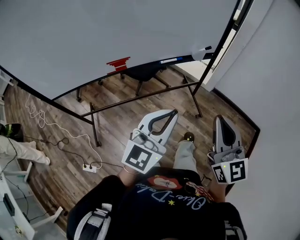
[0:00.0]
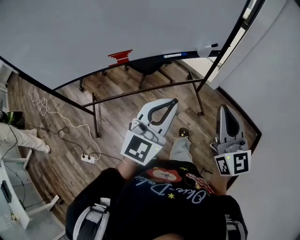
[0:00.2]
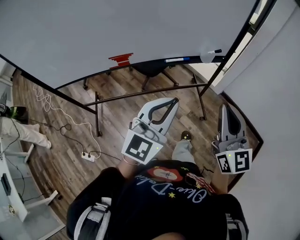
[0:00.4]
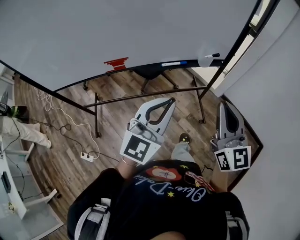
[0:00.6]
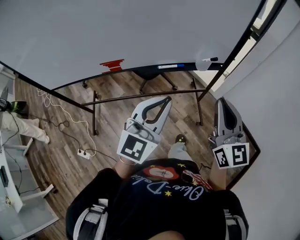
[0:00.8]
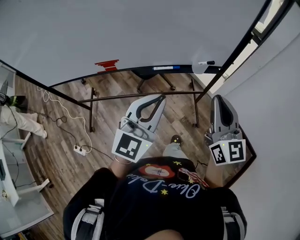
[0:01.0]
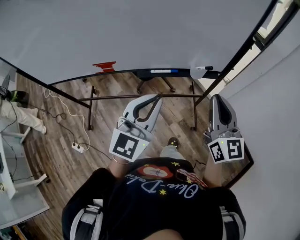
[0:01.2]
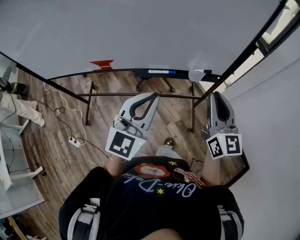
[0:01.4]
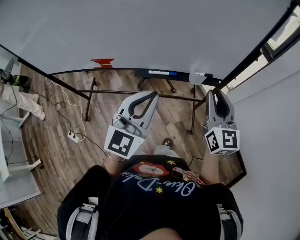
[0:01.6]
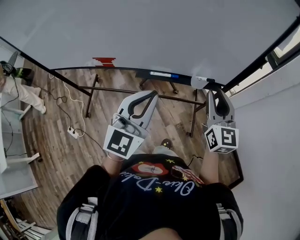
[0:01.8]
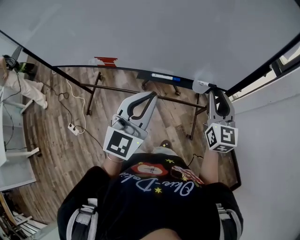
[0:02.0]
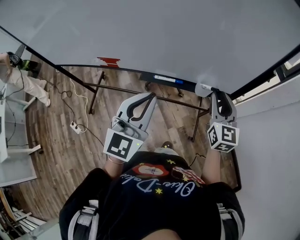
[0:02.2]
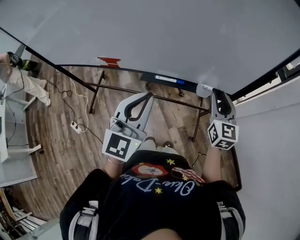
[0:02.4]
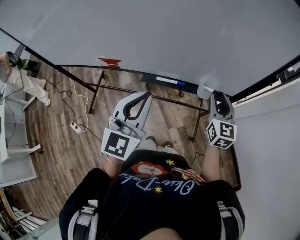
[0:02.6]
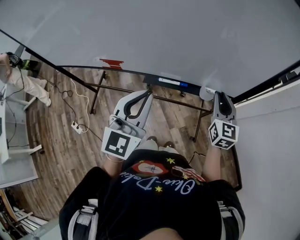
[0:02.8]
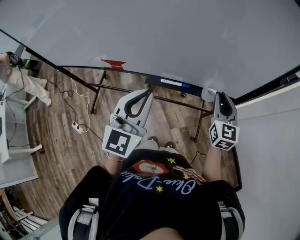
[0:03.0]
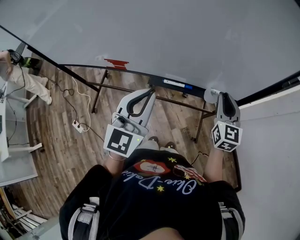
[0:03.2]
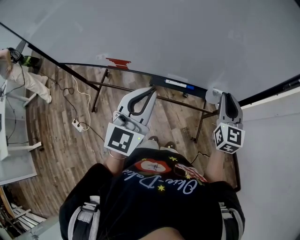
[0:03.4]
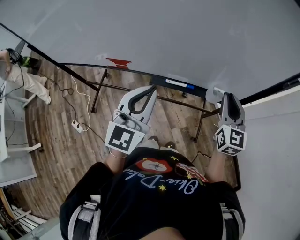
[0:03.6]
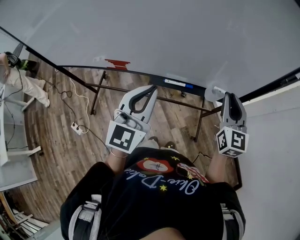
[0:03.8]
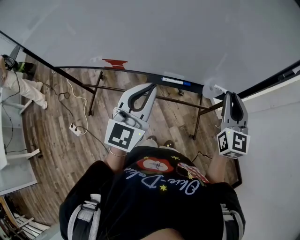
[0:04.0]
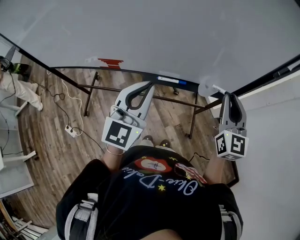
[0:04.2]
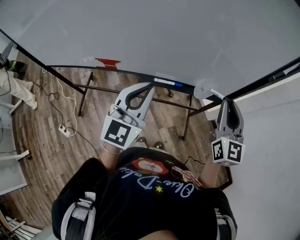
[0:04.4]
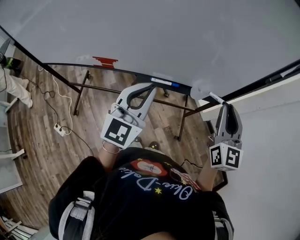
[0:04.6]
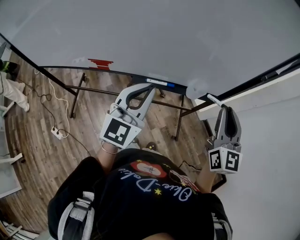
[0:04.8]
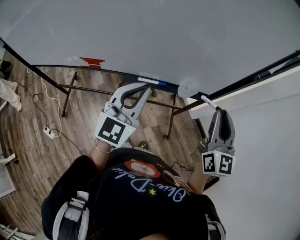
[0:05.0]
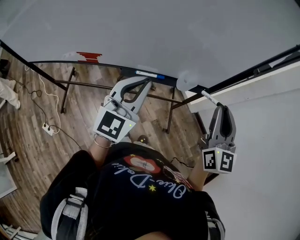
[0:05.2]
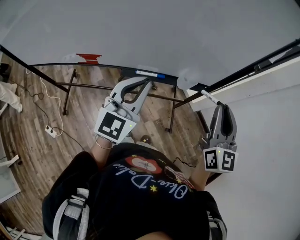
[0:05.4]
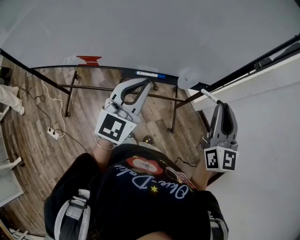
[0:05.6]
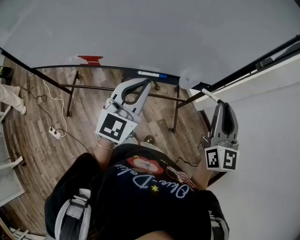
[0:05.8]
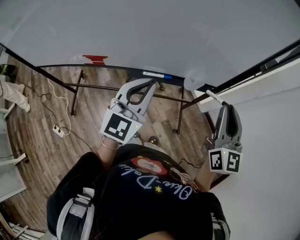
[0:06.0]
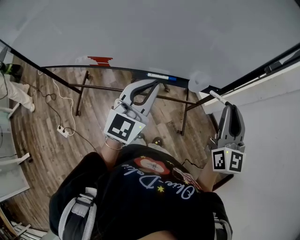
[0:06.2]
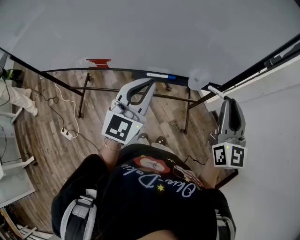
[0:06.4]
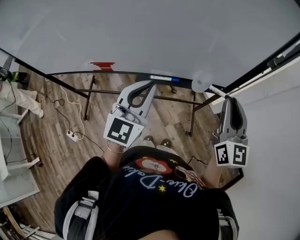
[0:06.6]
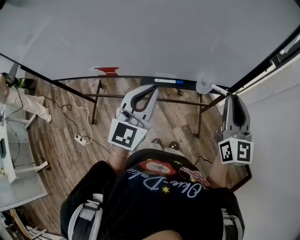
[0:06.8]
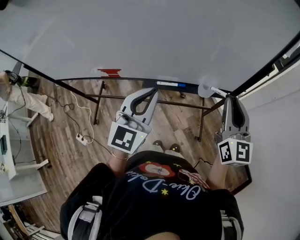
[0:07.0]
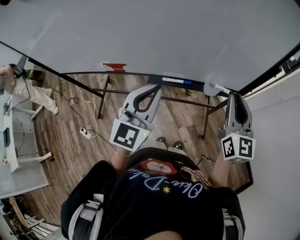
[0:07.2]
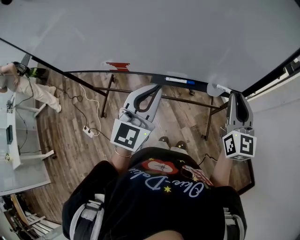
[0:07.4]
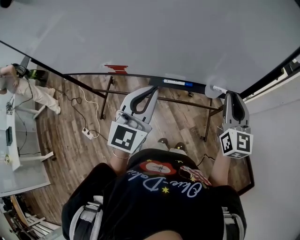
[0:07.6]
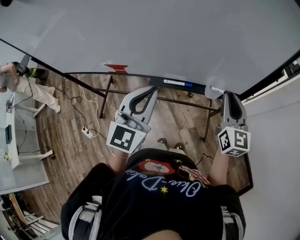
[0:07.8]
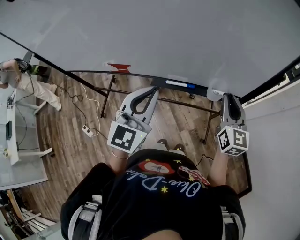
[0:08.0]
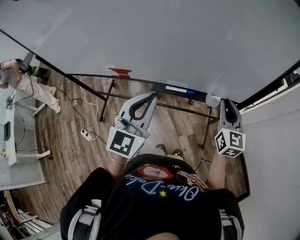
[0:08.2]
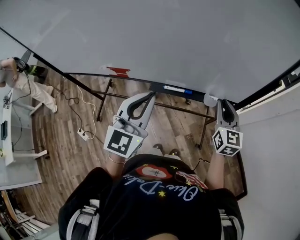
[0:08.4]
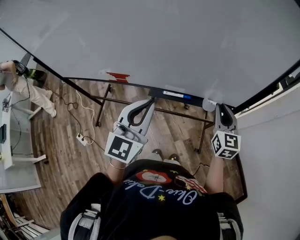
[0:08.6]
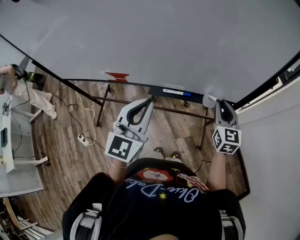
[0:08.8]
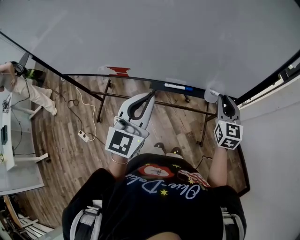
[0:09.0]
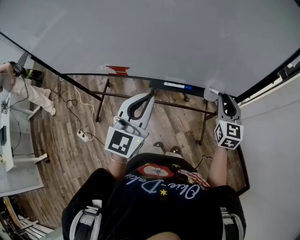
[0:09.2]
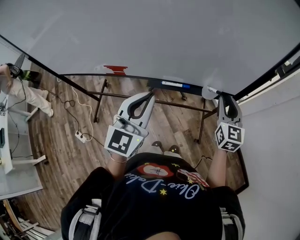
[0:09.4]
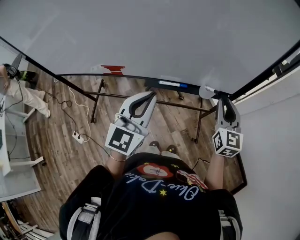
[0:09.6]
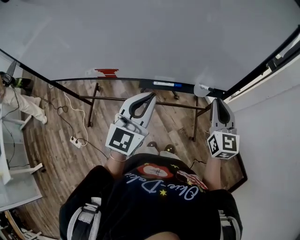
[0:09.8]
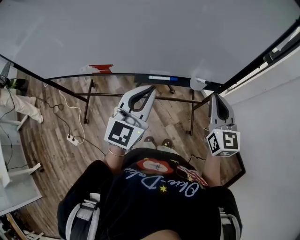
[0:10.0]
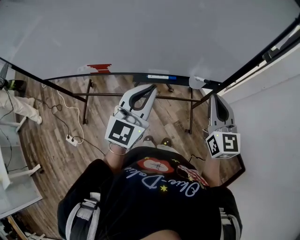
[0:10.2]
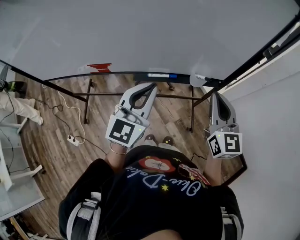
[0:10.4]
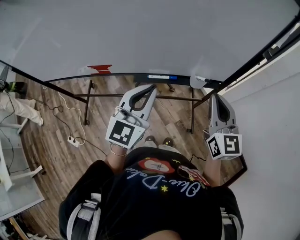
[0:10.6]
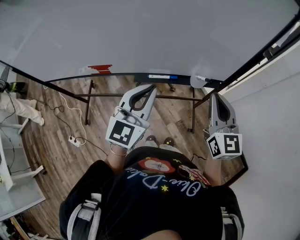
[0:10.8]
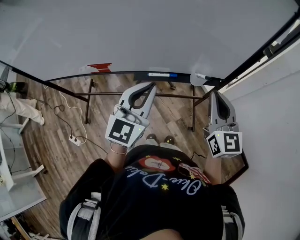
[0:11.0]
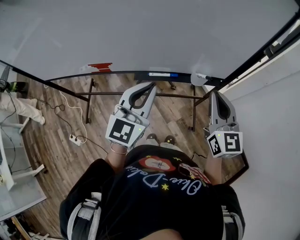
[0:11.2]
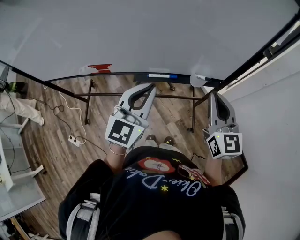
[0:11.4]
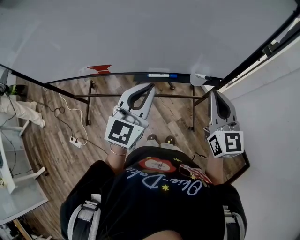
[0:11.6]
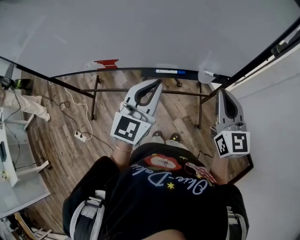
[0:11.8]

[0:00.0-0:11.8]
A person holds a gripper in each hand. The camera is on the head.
0:00.0 to 0:01.4: The grippers both shift forward by approximately 25 cm. The left gripper turns by about 30 degrees.
0:01.4 to 0:03.0: The right gripper travels forward and downward by about 15 cm; the left gripper moves forward and to the left, about 10 cm.
0:03.0 to 0:04.4: The right gripper shifts about 15 cm upward and backward.
0:04.4 to 0:06.0: The right gripper changes place by some 5 cm.
0:06.0 to 0:07.4: The right gripper goes roughly 10 cm forward and downward.
0:07.4 to 0:08.8: The right gripper moves downward, about 10 cm.
0:08.8 to 0:10.4: The right gripper is displaced upward and backward by approximately 10 cm.
0:10.4 to 0:11.8: There are only small adjustments of the grippers.

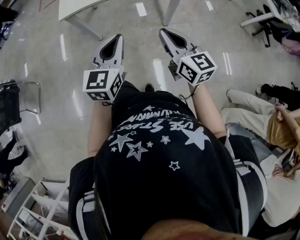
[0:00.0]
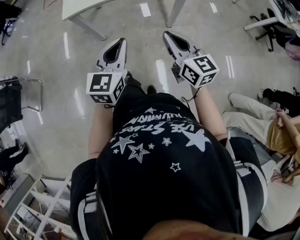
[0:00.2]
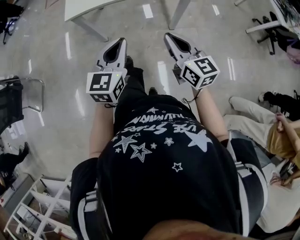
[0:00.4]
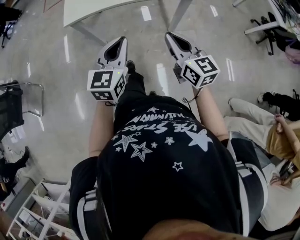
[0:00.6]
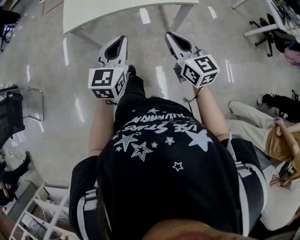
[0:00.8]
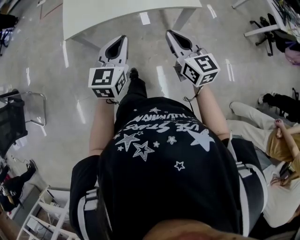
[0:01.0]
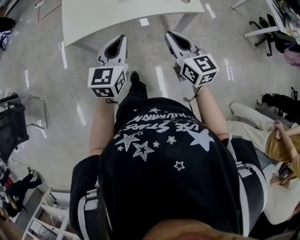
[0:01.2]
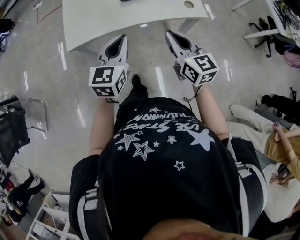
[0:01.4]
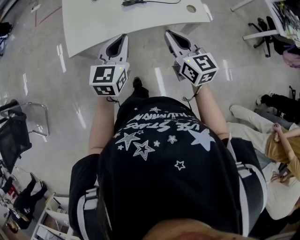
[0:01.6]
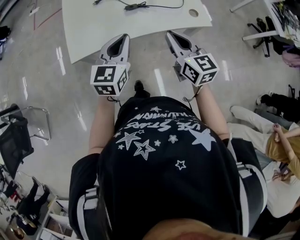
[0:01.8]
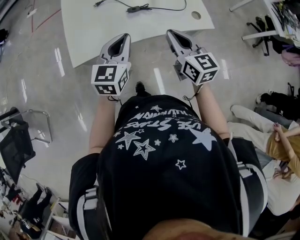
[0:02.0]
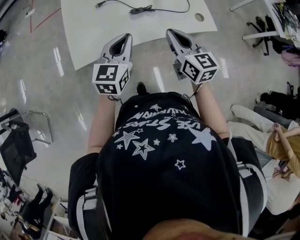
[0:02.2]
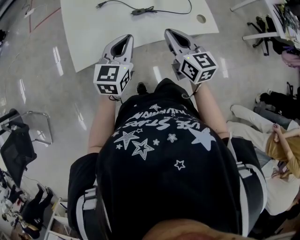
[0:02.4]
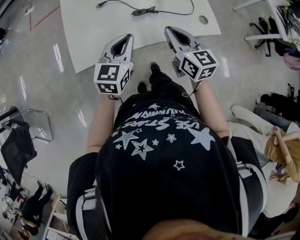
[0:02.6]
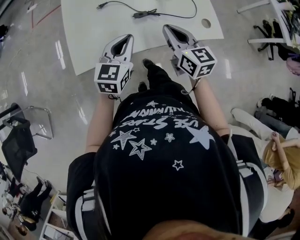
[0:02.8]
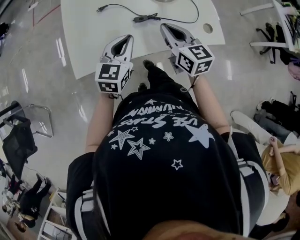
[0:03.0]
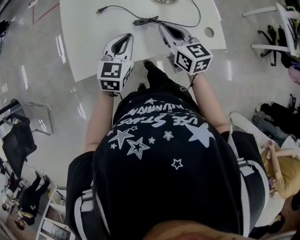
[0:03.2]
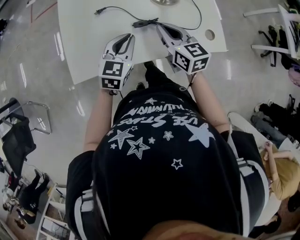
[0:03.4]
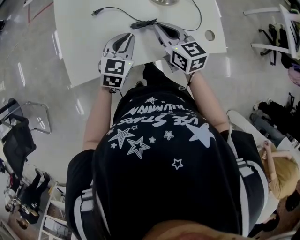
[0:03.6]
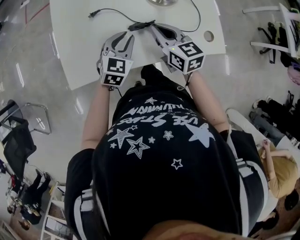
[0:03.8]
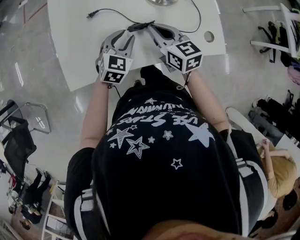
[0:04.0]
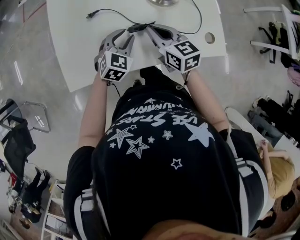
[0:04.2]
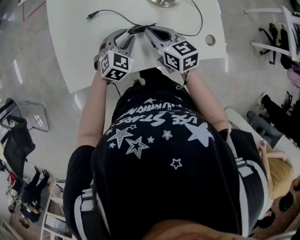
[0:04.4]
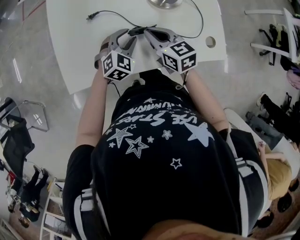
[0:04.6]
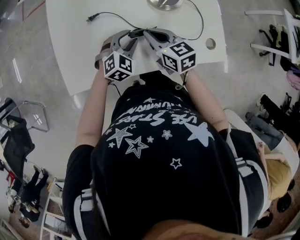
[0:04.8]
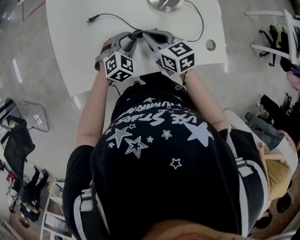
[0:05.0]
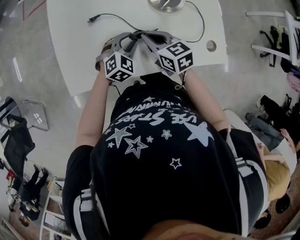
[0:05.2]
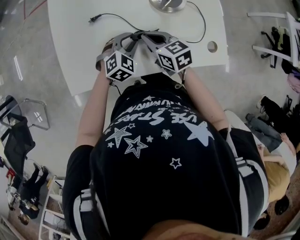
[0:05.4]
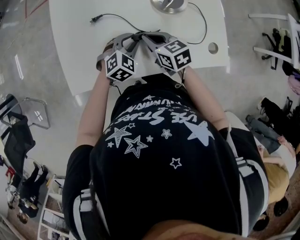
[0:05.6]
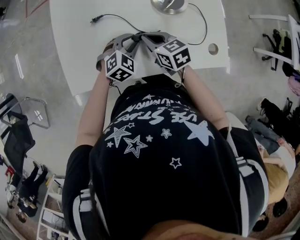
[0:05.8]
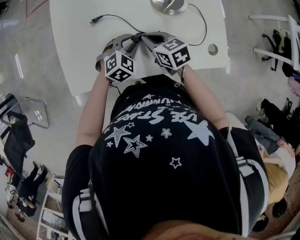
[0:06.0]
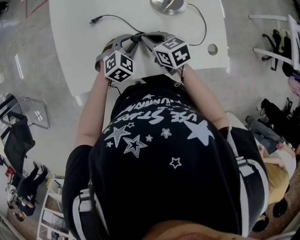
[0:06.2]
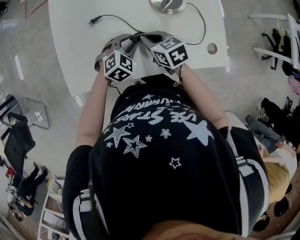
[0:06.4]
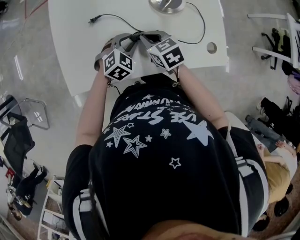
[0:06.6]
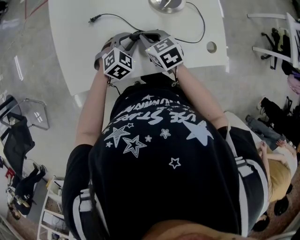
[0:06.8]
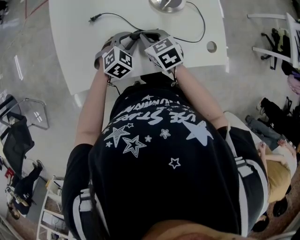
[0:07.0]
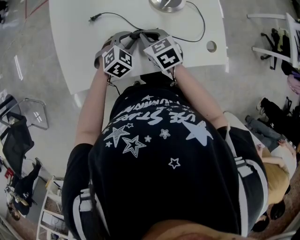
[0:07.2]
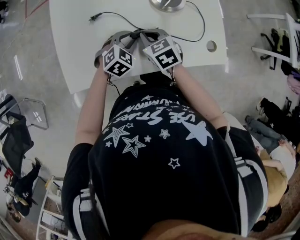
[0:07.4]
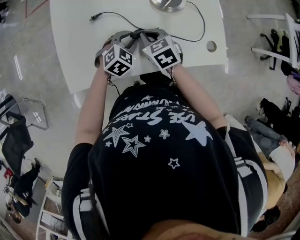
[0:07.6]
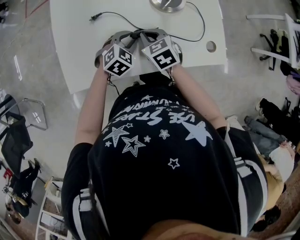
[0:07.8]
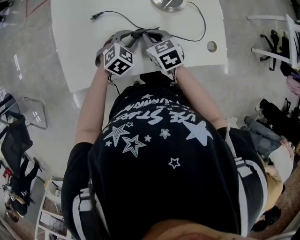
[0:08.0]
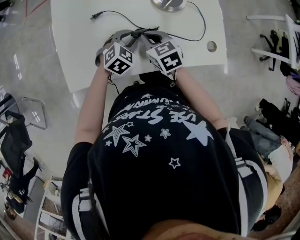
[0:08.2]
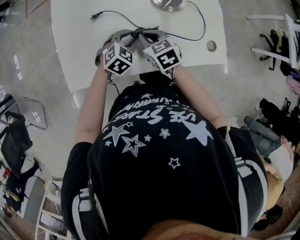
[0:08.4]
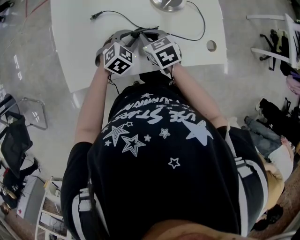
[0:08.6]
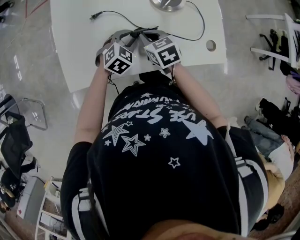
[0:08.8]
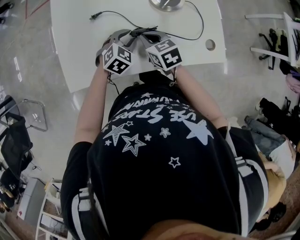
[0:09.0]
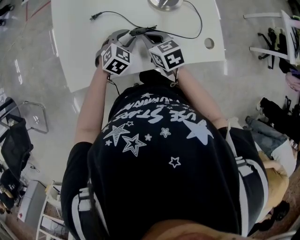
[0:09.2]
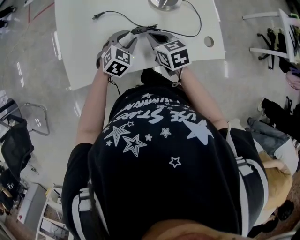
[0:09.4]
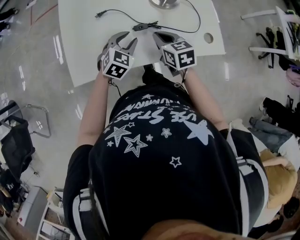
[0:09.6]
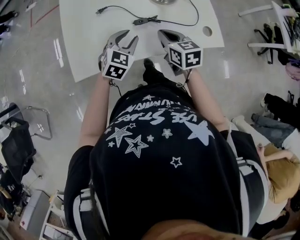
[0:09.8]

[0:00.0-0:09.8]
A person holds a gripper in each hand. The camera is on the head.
0:00.0 to 0:01.4: Both grippers travel together forward, roughly 25 cm.
0:01.4 to 0:02.8: The right gripper travels forward and to the left by about 20 cm, while the left gripper goes roughly 15 cm forward.
0:02.8 to 0:04.2: The two grippers go some 15 cm forward and downward. The left gripper changes its angle by some 30 degrees, and opens up.
0:04.2 to 0:05.6: The right gripper heads downward, covering some 5 cm.
0:05.6 to 0:07.0: There are only small adjustments of the grippers.
0:07.0 to 0:08.4: The grippers stay close to where they were, moving slightly.
0:08.4 to 0:09.8: The right gripper travels backward, upward and to the right by about 10 cm, and changes its angle by approximately 20 degrees. The left gripper travels upward and backward by approximately 10 cm.

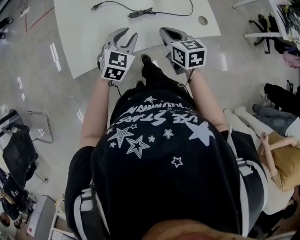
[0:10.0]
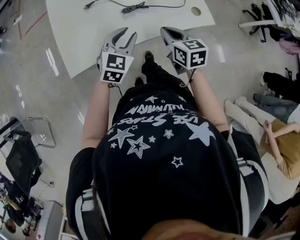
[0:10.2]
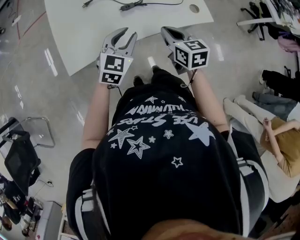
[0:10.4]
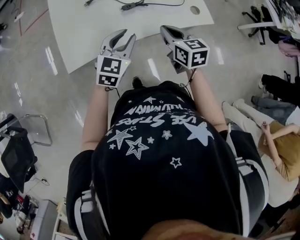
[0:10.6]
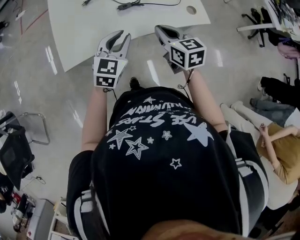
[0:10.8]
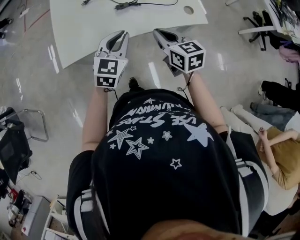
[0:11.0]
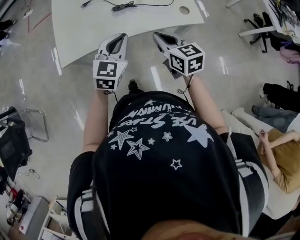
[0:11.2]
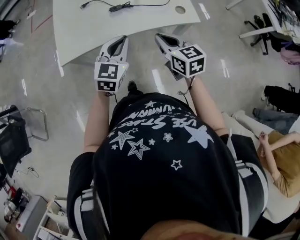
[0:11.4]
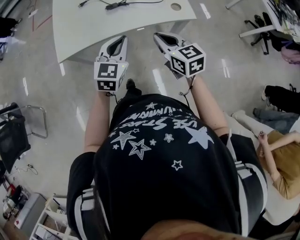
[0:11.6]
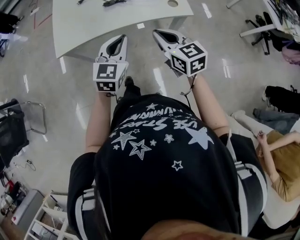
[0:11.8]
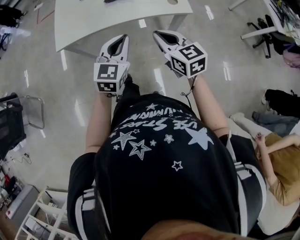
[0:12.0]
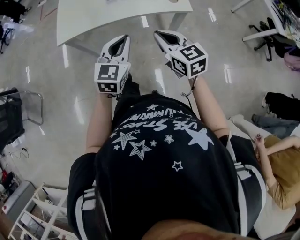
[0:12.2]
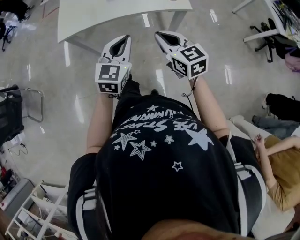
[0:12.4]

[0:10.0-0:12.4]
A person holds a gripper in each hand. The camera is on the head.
0:10.0 to 0:11.2: The left gripper heads backward, upward and to the right, covering some 15 cm, and closes up. Meanwhile the right gripper is displaced backward and to the right by roughly 15 cm.
0:11.2 to 0:12.4: Both grippers travel together backward, roughly 20 cm.
